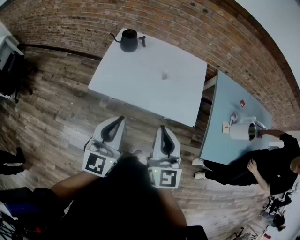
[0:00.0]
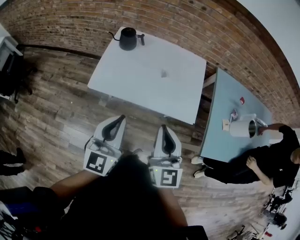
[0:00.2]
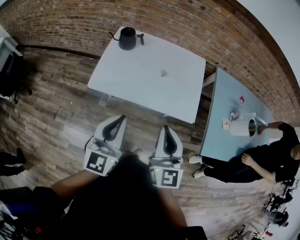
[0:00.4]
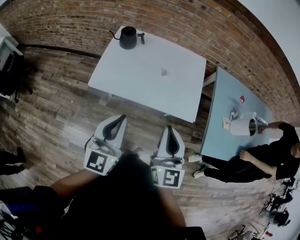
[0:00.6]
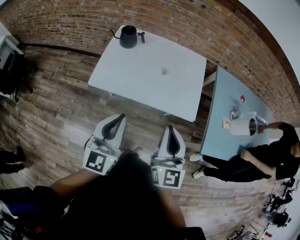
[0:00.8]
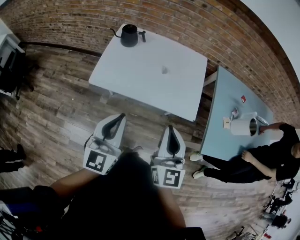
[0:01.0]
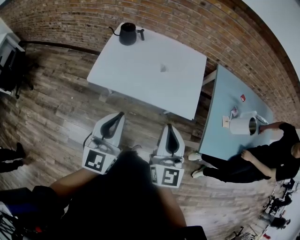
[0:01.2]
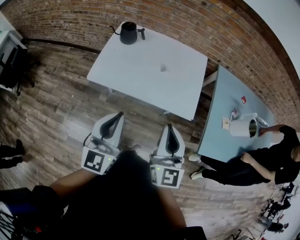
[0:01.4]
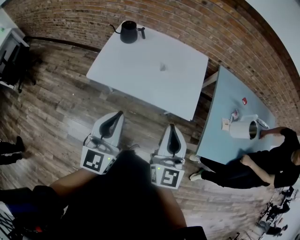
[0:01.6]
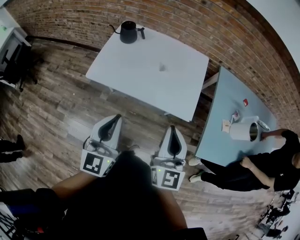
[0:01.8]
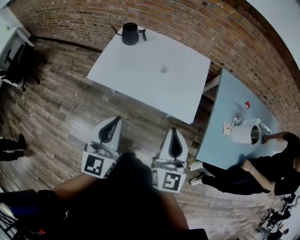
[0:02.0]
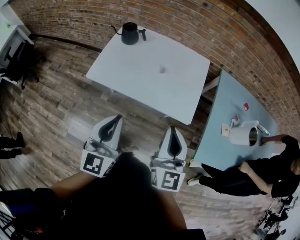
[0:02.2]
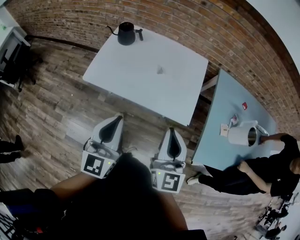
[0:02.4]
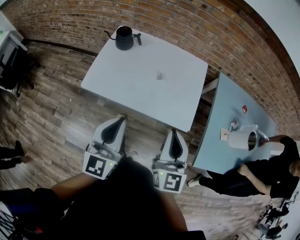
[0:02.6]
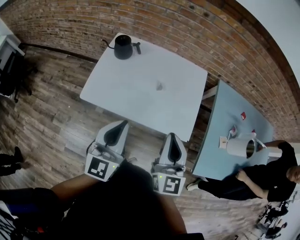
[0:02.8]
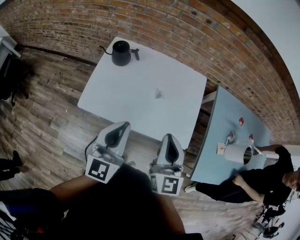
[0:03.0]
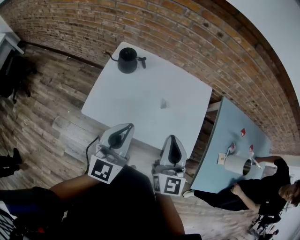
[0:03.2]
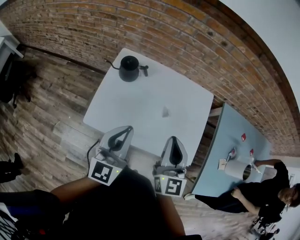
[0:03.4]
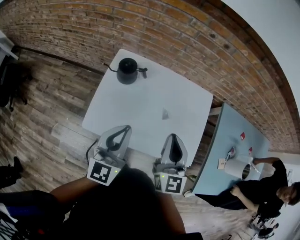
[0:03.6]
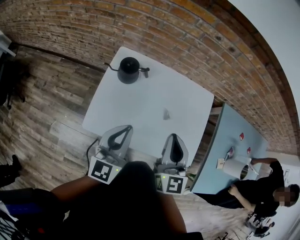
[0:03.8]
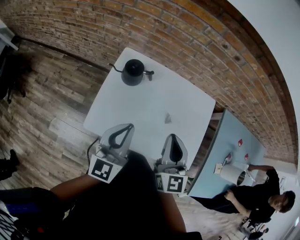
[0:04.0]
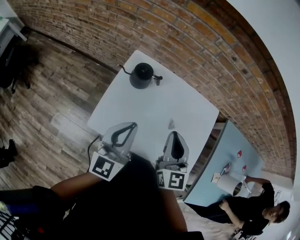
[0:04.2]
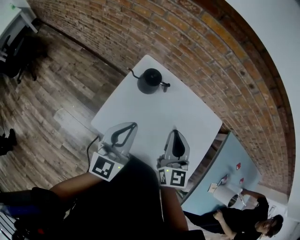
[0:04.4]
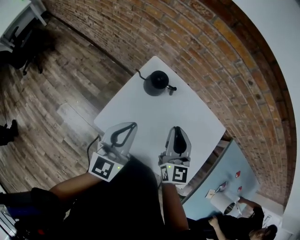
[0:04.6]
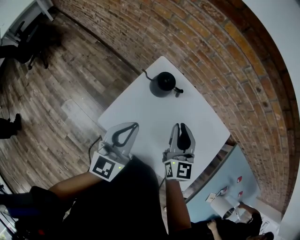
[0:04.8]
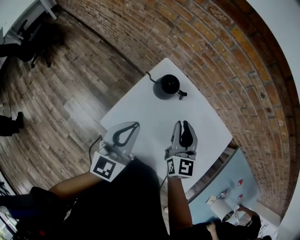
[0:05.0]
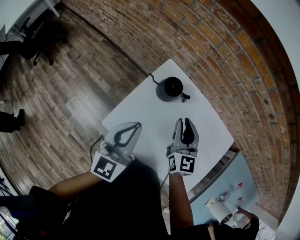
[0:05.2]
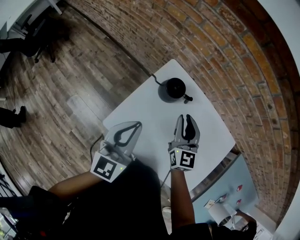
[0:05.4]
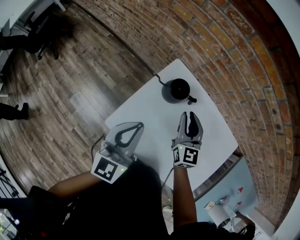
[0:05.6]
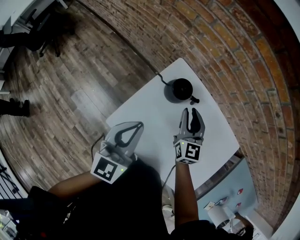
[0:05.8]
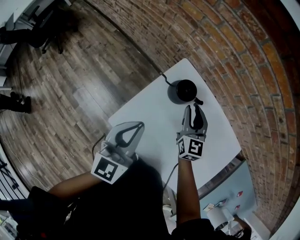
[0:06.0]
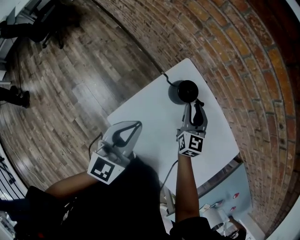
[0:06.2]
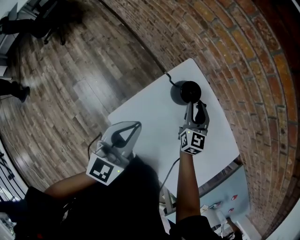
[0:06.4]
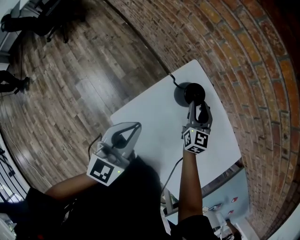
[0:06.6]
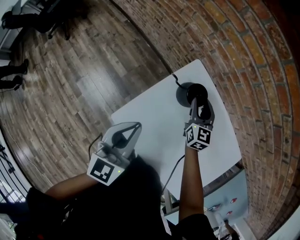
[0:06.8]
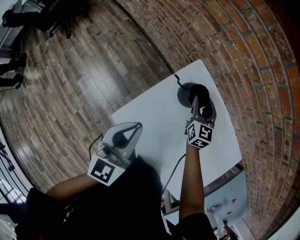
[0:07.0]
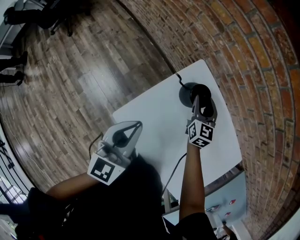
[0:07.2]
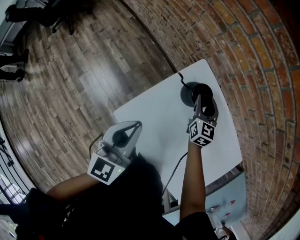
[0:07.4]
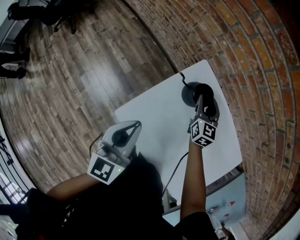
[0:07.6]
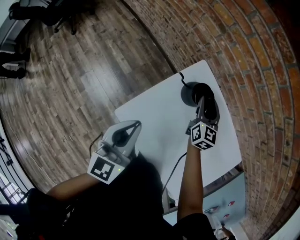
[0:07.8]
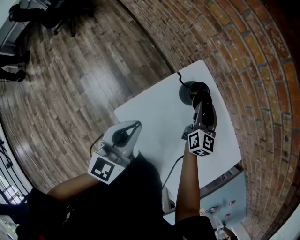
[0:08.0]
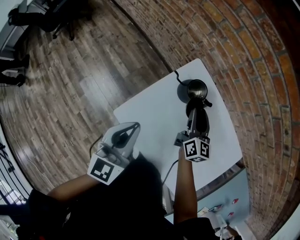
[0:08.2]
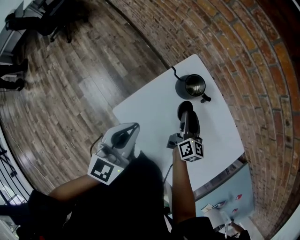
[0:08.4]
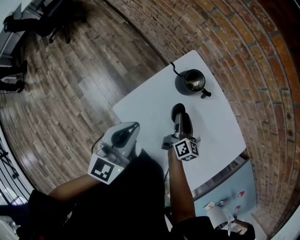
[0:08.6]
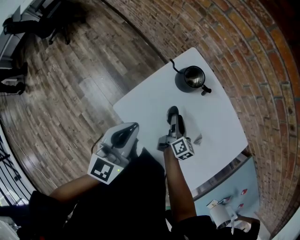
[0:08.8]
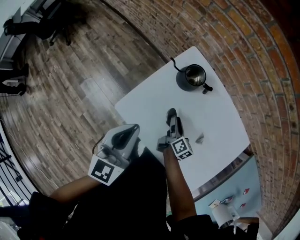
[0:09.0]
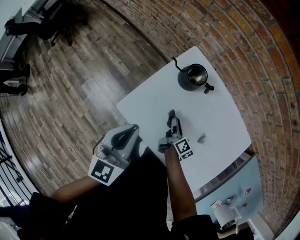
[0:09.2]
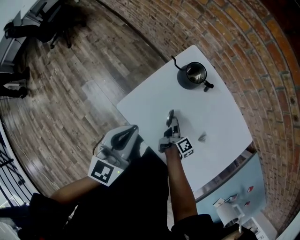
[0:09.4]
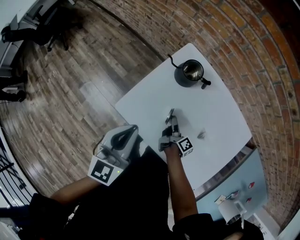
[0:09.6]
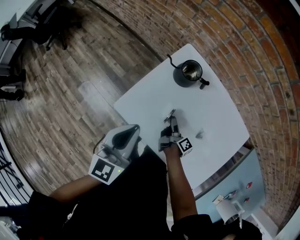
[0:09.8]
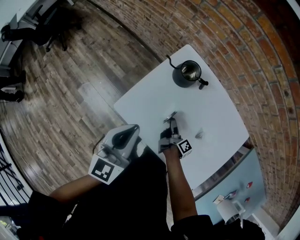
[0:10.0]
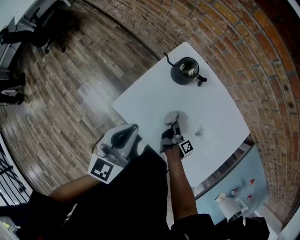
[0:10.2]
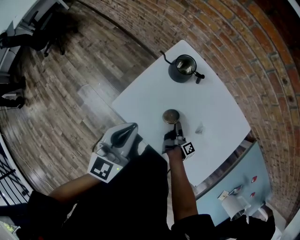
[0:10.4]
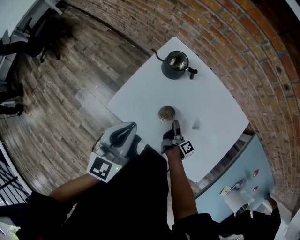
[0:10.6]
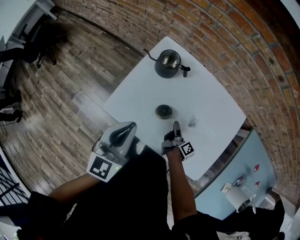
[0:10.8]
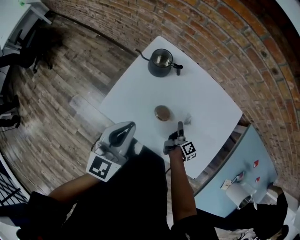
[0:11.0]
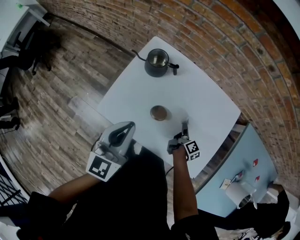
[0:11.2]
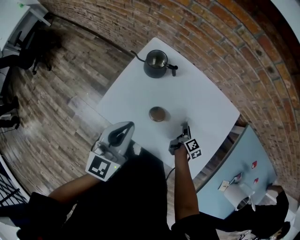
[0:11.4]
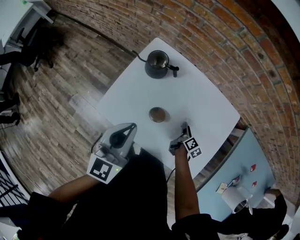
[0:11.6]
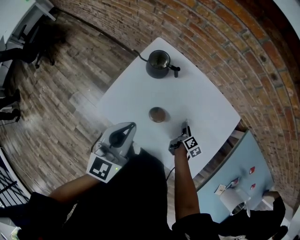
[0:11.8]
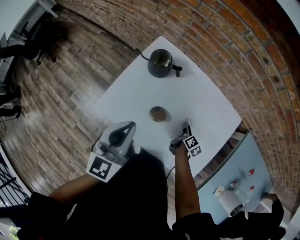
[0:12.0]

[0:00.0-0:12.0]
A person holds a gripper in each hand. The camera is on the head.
0:00.0 to 0:01.6: The left gripper moves some 5 cm; the right gripper moves to the right, about 10 cm.
0:01.6 to 0:03.0: Both grippers move forward, roughly 15 cm.
0:03.0 to 0:04.4: Both grippers travel together forward and to the left, approximately 20 cm.
0:04.4 to 0:06.0: The left gripper shifts some 10 cm to the left and forward. Meanwhile the right gripper travels forward and downward by about 20 cm, and opens its fingers.
0:06.0 to 0:07.6: The right gripper travels forward and downward by roughly 10 cm. Meanwhile the left gripper shifts by some 5 cm.
0:07.6 to 0:09.0: The left gripper travels backward by about 5 cm. Meanwhile the right gripper is displaced backward and downward by roughly 25 cm, and rolls clockwise, seen from behind, by some 60 degrees.
0:09.0 to 0:10.4: The right gripper goes some 10 cm backward, to the right and downward, and turns by approximately 40 degrees.
0:10.4 to 0:12.0: The left gripper moves to the right, approximately 10 cm. Meanwhile the right gripper shifts approximately 15 cm to the right, and turns by approximately 40 degrees.

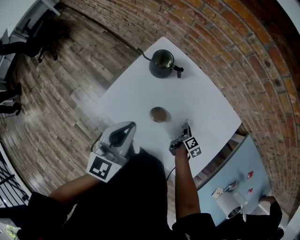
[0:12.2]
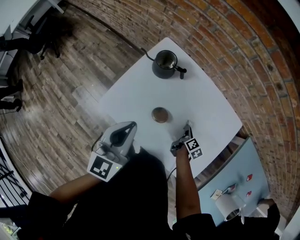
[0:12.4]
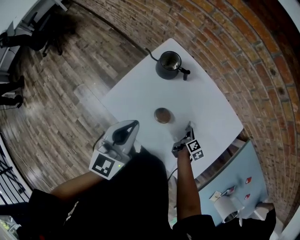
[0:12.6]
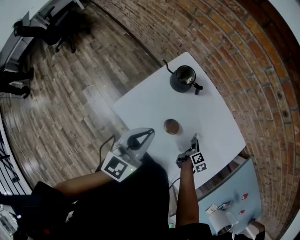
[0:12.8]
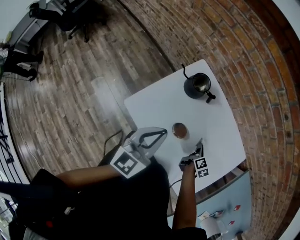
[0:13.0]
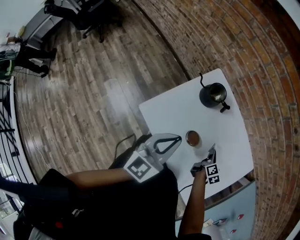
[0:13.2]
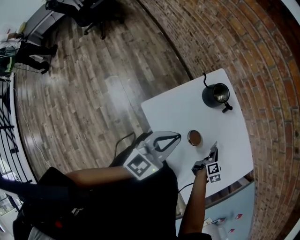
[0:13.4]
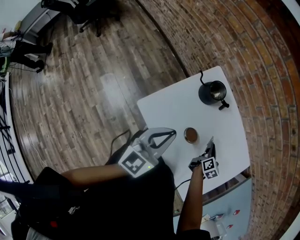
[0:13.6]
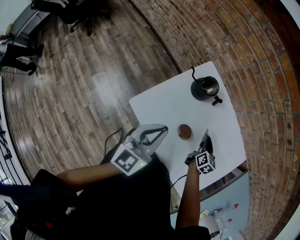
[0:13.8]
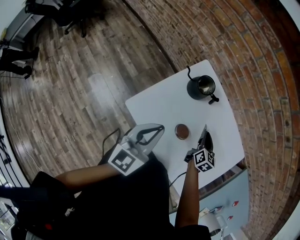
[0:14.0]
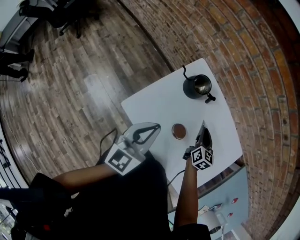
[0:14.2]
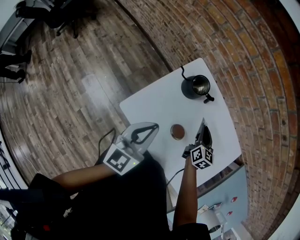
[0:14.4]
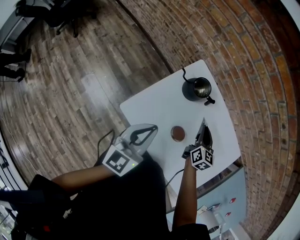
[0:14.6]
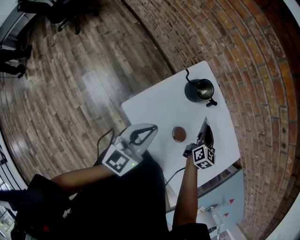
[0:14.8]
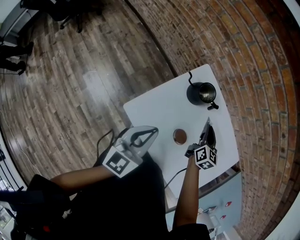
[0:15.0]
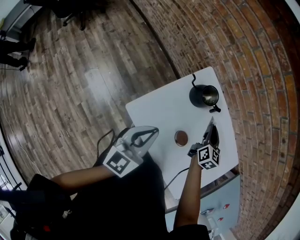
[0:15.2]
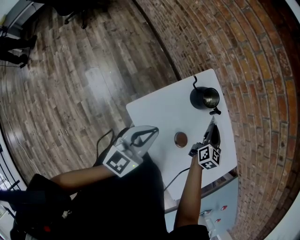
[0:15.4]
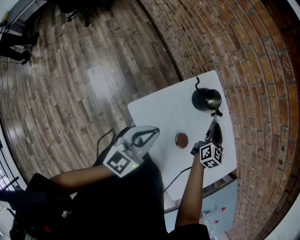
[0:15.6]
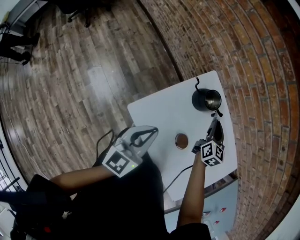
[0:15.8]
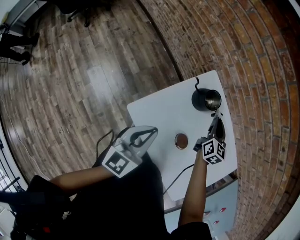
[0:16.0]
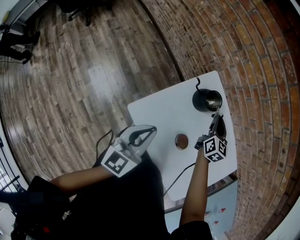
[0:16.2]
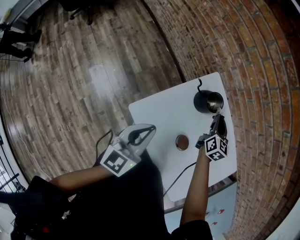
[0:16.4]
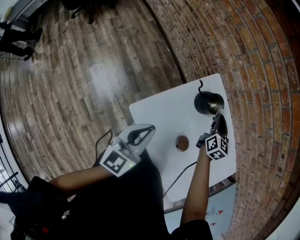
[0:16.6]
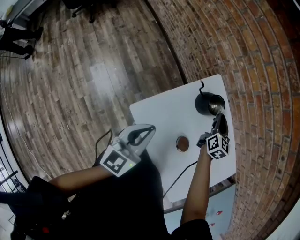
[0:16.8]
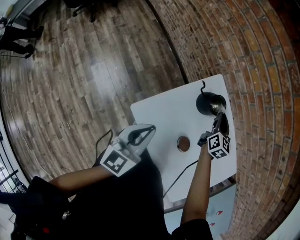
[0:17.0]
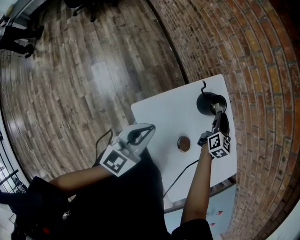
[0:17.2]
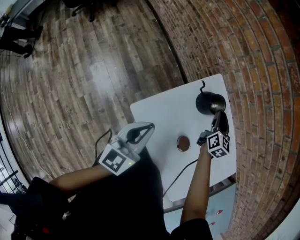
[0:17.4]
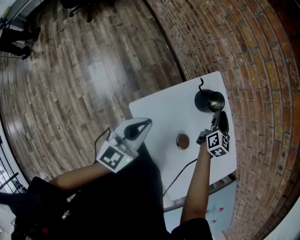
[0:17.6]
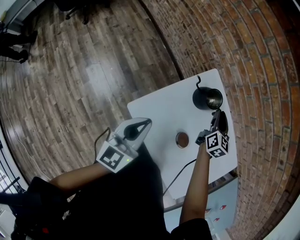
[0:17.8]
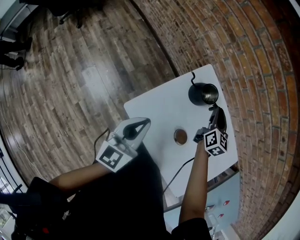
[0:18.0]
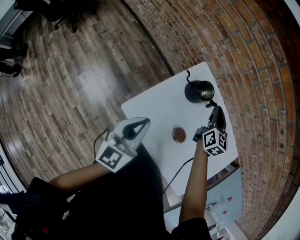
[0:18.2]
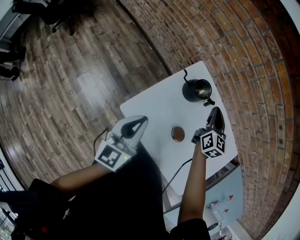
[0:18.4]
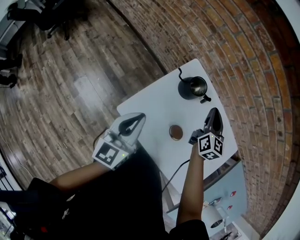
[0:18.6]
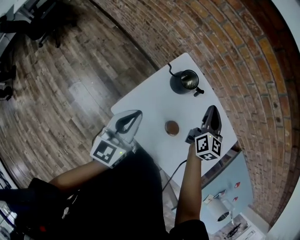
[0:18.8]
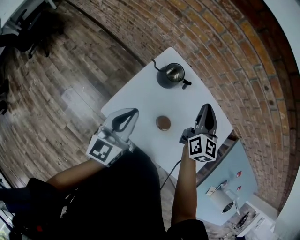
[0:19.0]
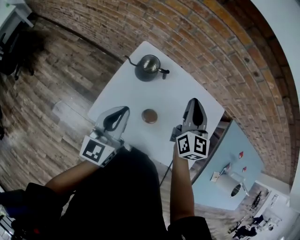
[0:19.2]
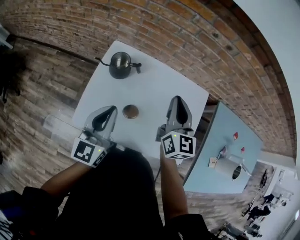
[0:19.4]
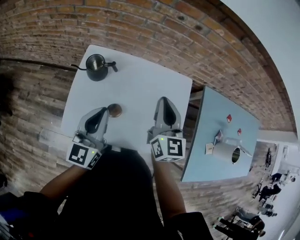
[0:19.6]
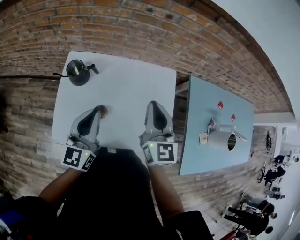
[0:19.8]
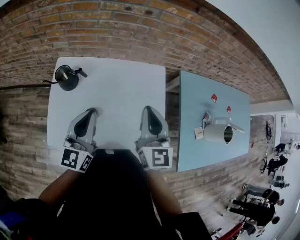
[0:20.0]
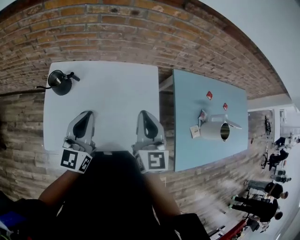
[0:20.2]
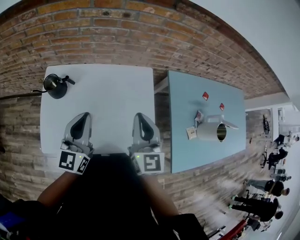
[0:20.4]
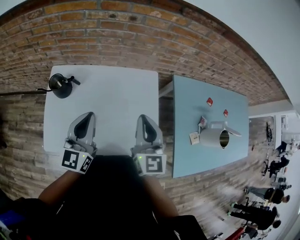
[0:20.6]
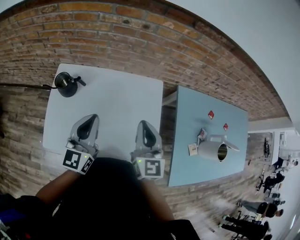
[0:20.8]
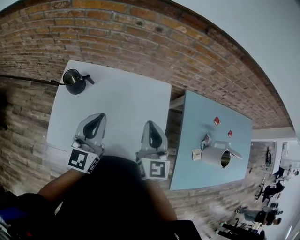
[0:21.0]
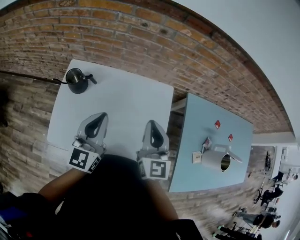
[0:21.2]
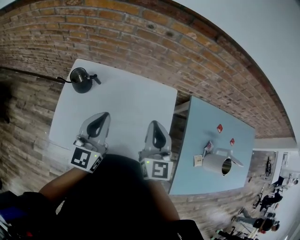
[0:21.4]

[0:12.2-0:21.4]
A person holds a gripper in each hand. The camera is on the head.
0:12.2 to 0:13.8: The right gripper moves upward, to the left and forward, roughly 15 cm, and rotates some 40 degrees; the left gripper travels to the left by about 5 cm.
0:13.8 to 0:15.2: The right gripper moves forward, upward and to the left, about 15 cm. The left gripper moves some 5 cm.
0:15.2 to 0:16.8: The right gripper travels forward by about 10 cm.
0:16.8 to 0:18.4: The right gripper shifts some 5 cm upward.
0:18.4 to 0:19.8: The left gripper shifts by roughly 20 cm, and swivels roughly 30 degrees, while the right gripper ends up some 30 cm from where it was, and rotates about 30 degrees.
0:19.8 to 0:21.4: The left gripper moves to the right, some 5 cm.

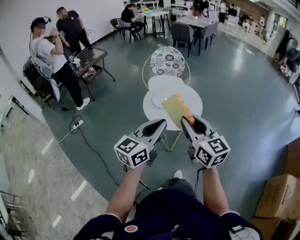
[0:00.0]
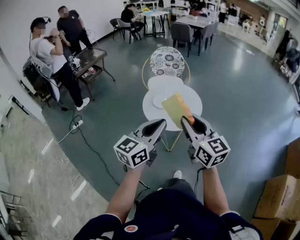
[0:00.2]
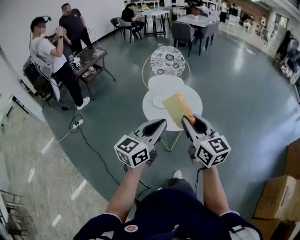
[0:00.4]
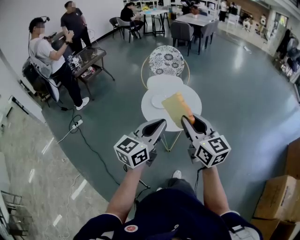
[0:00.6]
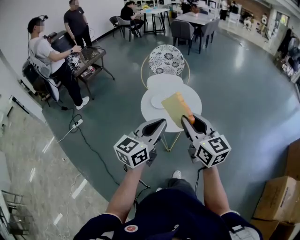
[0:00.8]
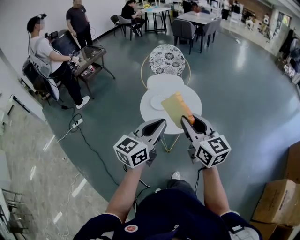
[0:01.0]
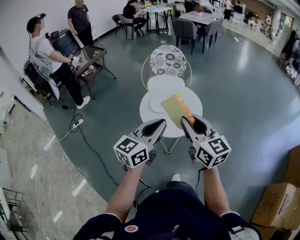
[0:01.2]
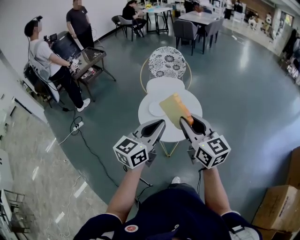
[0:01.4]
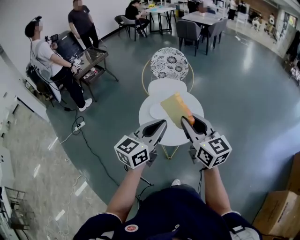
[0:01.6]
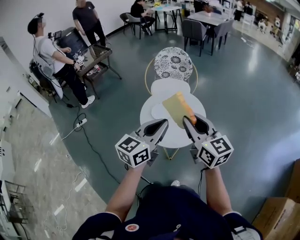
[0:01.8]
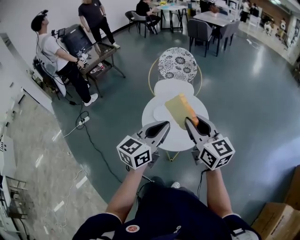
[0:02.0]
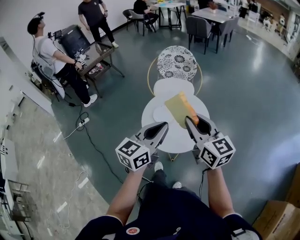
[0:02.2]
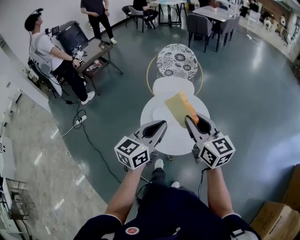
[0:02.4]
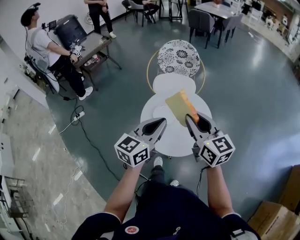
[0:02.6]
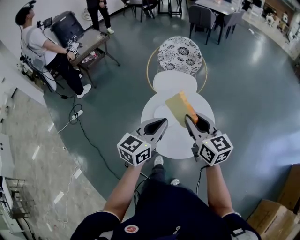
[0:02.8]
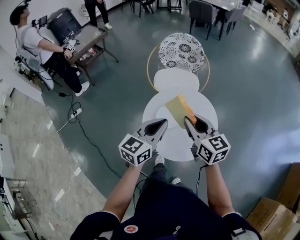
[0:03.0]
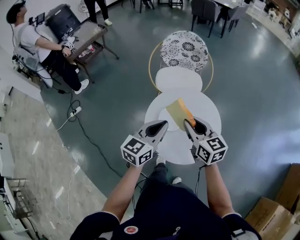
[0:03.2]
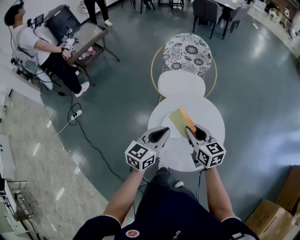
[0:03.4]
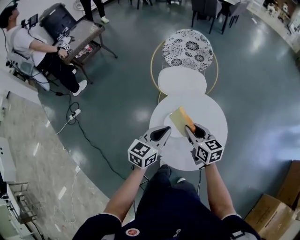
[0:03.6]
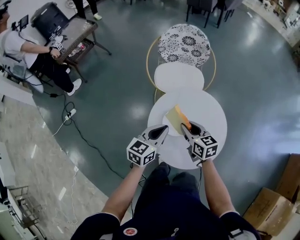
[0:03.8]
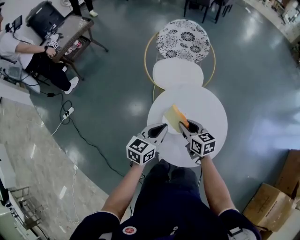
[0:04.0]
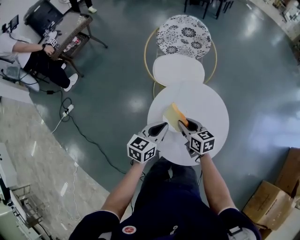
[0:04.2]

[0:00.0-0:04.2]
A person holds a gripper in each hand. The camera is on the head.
0:00.0 to 0:01.4: Both grippers move forward, roughly 10 cm.
0:01.4 to 0:02.8: The two grippers go roughly 20 cm forward and downward.
0:02.8 to 0:04.2: The left gripper heads downward, forward and to the left, covering approximately 20 cm, while the right gripper is displaced downward and forward by some 25 cm, and turns by about 30 degrees.
